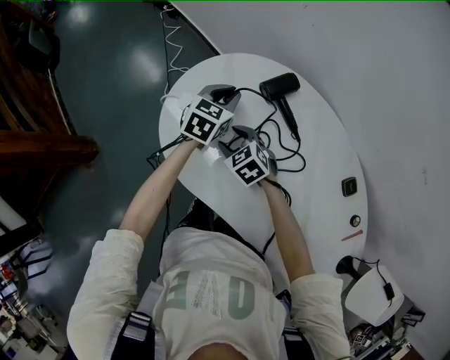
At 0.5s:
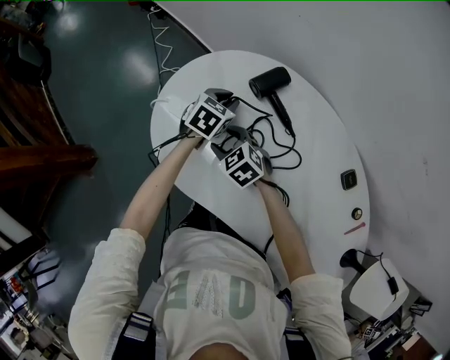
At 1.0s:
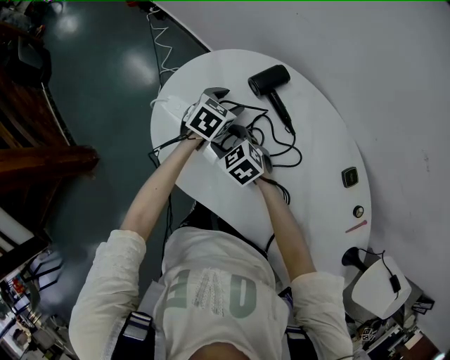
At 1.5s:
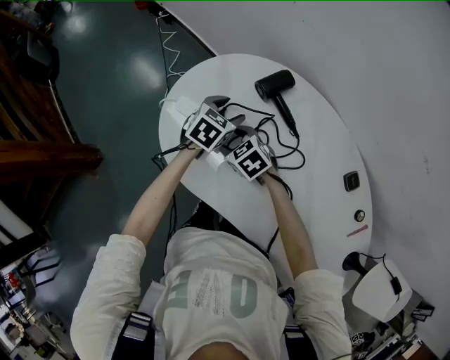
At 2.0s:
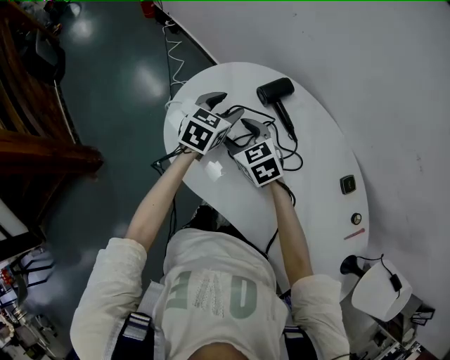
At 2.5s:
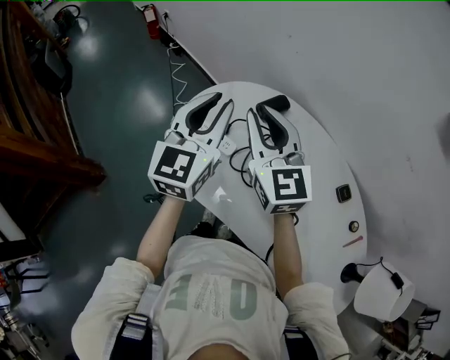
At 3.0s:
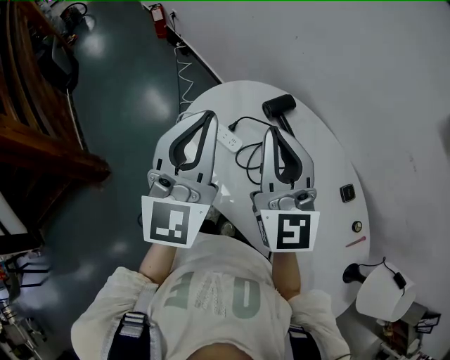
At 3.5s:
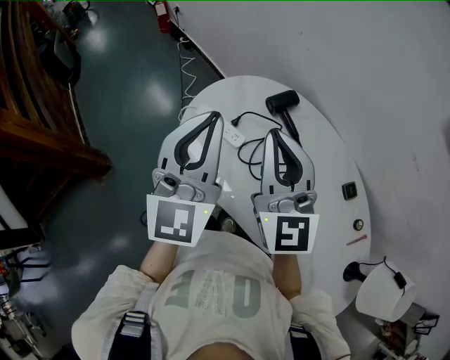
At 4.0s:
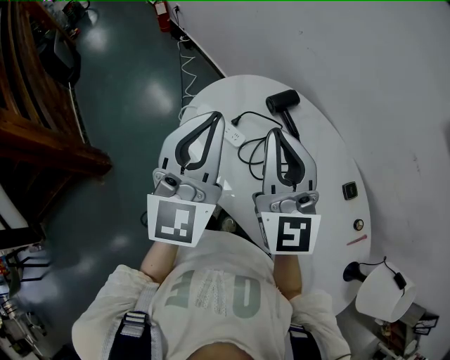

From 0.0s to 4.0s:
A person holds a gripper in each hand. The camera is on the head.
From 0.0s to 2.0s: The right gripper heads upward, covering about 10 cm. The left gripper ends up roughly 5 cm from where it was, and opens up.
From 2.0s to 4.0s: The right gripper heads upward, covering about 30 cm, tilts its fingers approximately 50 degrees upward, and closes up. The left gripper shifts about 30 cm upward and backward, angles its fingers upward, by some 40 degrees, and closes its fingers.

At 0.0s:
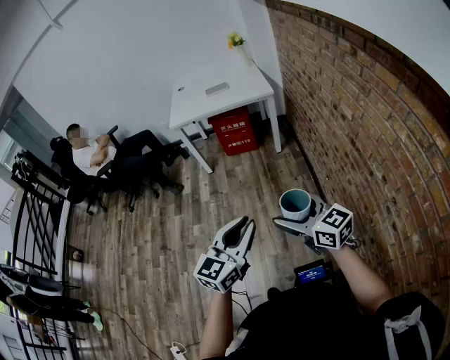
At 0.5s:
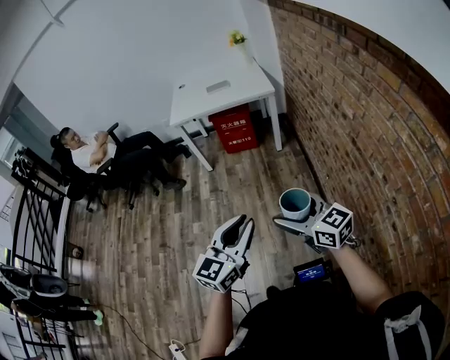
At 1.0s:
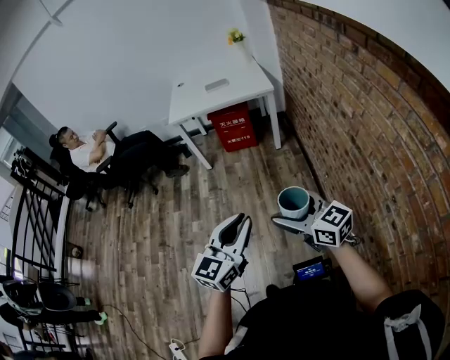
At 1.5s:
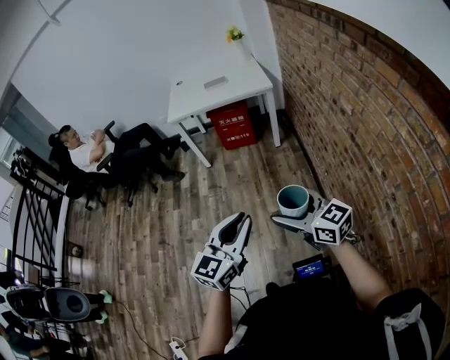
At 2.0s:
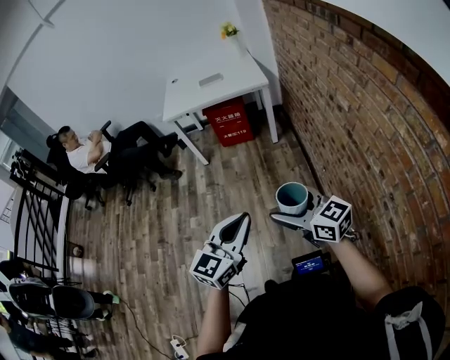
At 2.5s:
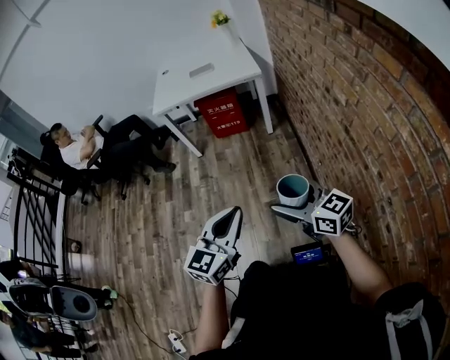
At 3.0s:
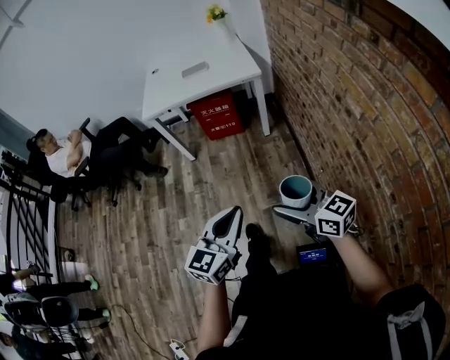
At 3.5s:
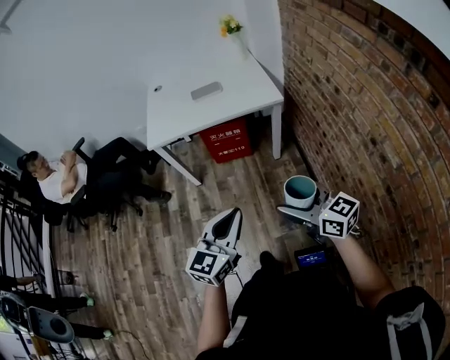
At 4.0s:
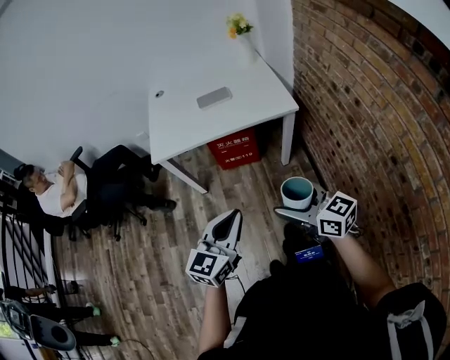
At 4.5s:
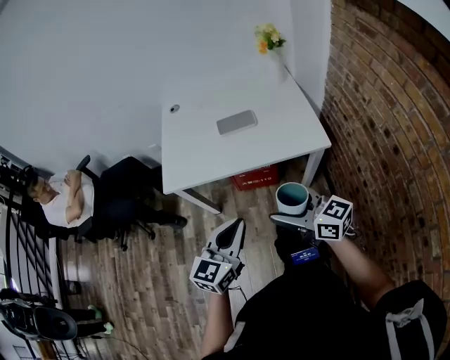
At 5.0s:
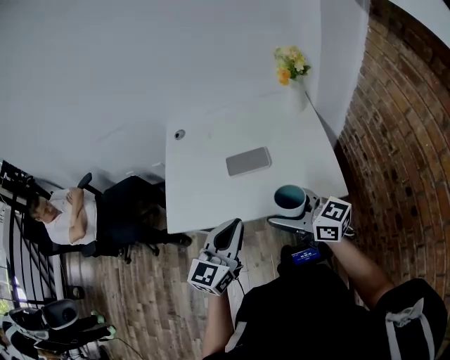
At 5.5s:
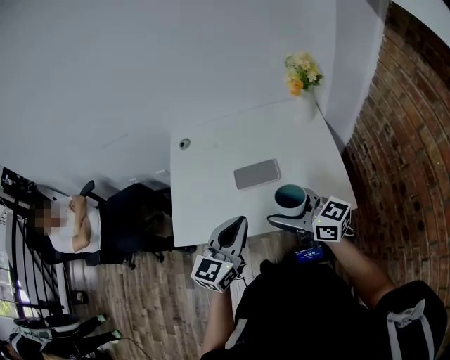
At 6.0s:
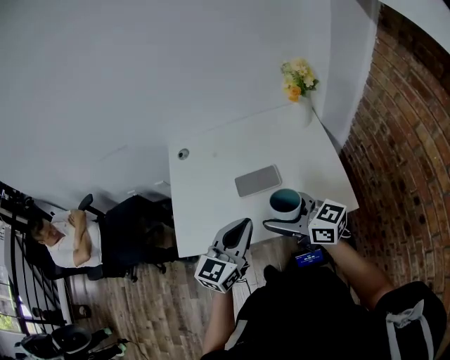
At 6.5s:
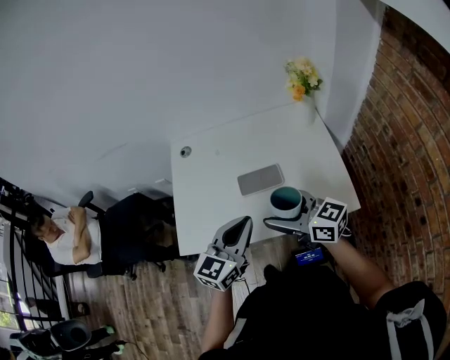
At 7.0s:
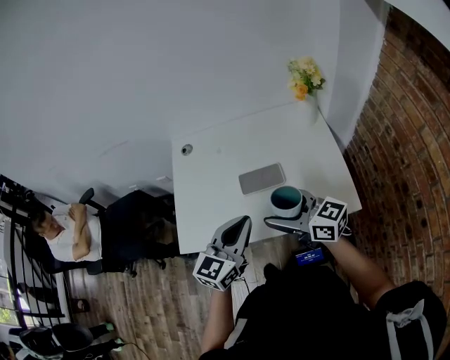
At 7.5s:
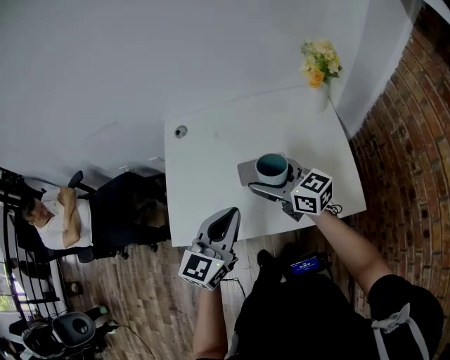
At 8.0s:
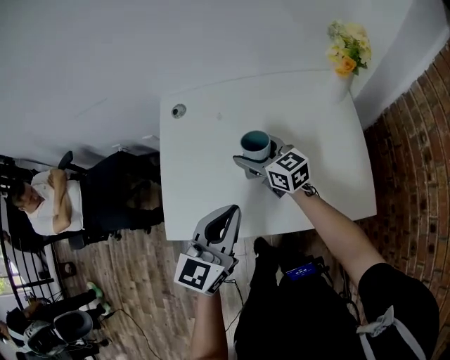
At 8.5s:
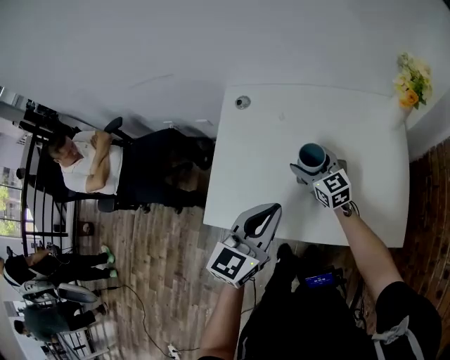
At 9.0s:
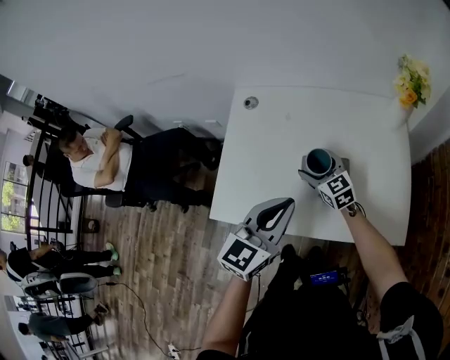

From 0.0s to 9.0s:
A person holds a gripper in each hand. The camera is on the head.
From 0.0s to 2.0s: There are only small adjustments of the grippers.
From 2.0s to 4.5s: The pair of grippers is taken forward, some 70 cm.
From 4.5s to 7.0s: The grippers both shift forward by about 30 cm.
From 7.0s to 9.0s: The right gripper shifts approximately 25 cm downward and forward, and changes its angle by about 30 degrees. The left gripper moves forward, some 5 cm.

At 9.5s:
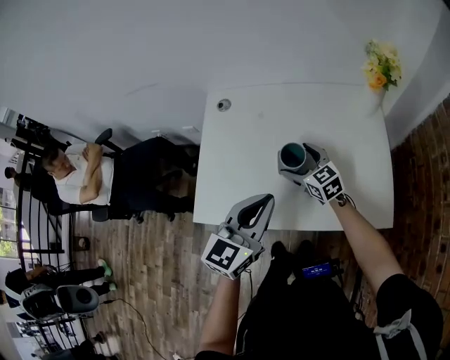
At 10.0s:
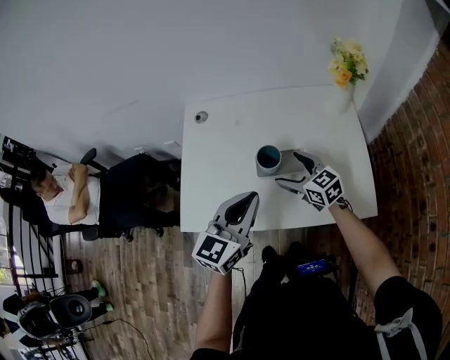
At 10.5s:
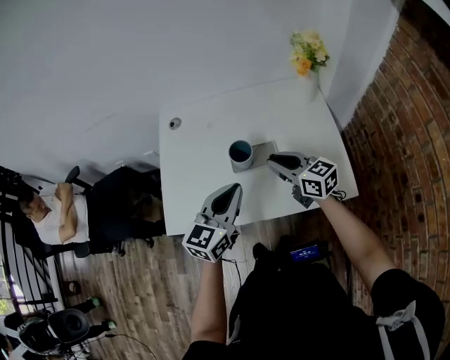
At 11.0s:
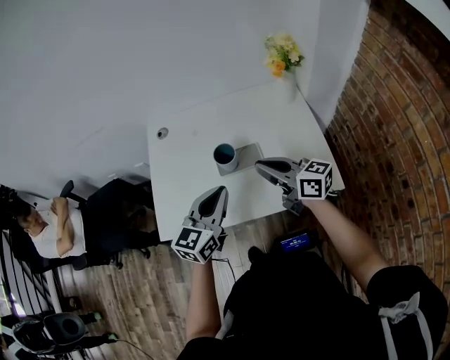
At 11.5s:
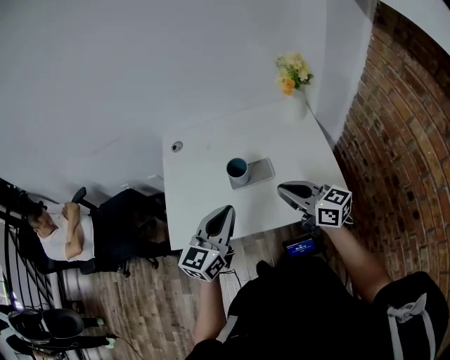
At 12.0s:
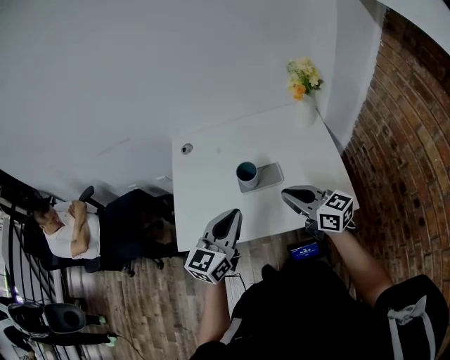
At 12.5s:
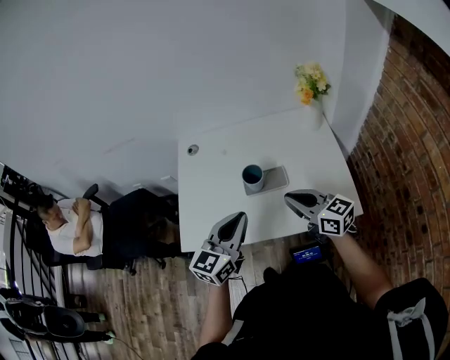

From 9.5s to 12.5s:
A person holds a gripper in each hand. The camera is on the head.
From 9.5s to 11.0s: The right gripper travels upward, backward and to the right by roughly 20 cm, swivels about 30 degrees, and closes its fingers.
From 11.0s to 12.5s: The grippers move only a little.

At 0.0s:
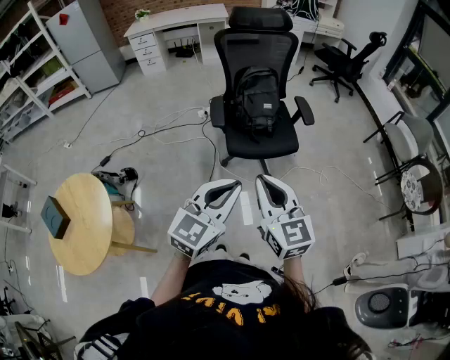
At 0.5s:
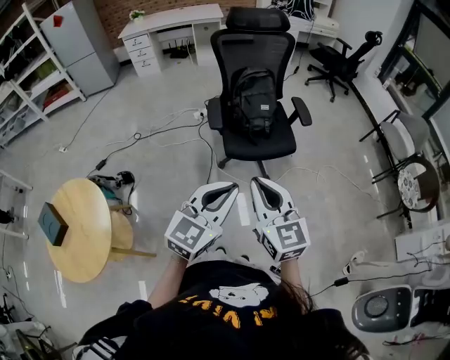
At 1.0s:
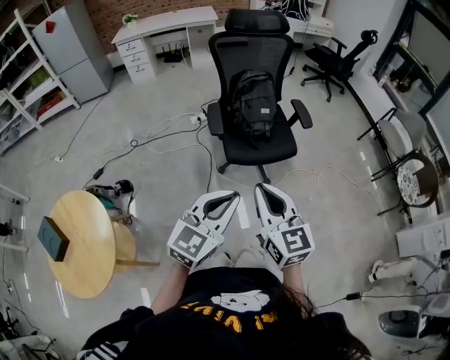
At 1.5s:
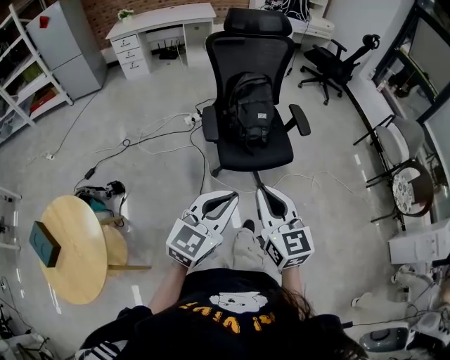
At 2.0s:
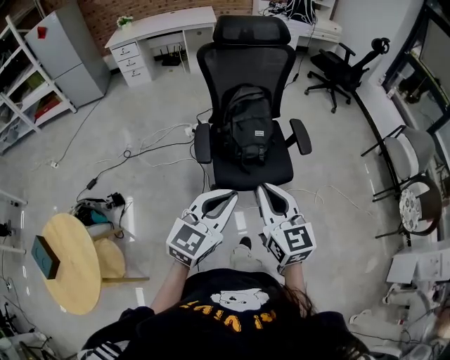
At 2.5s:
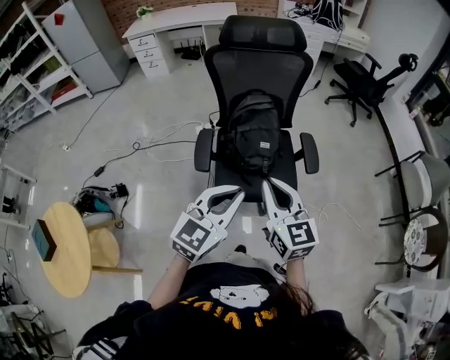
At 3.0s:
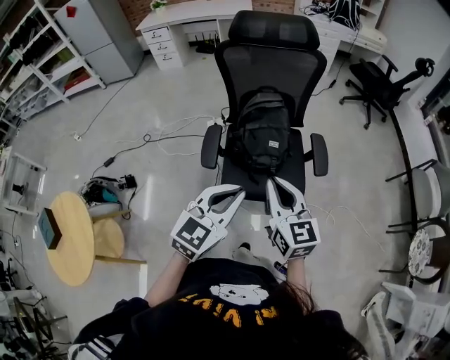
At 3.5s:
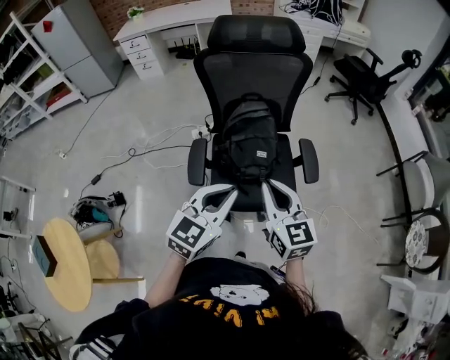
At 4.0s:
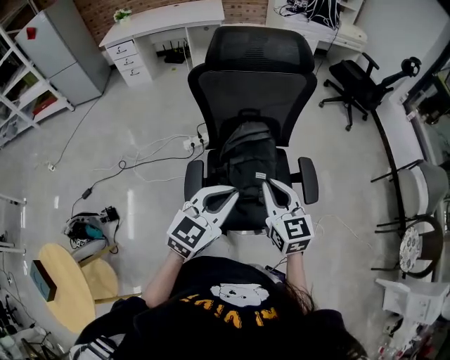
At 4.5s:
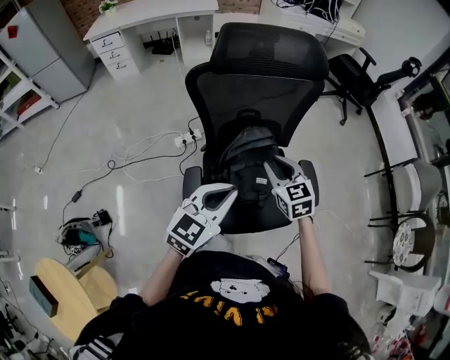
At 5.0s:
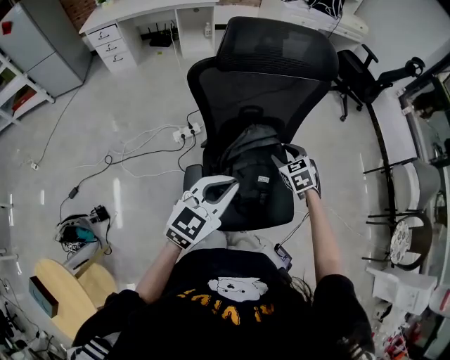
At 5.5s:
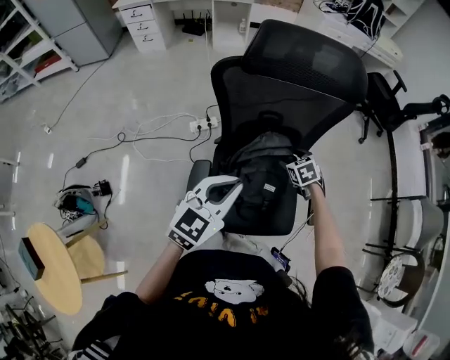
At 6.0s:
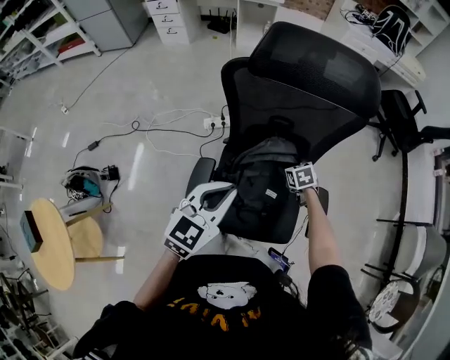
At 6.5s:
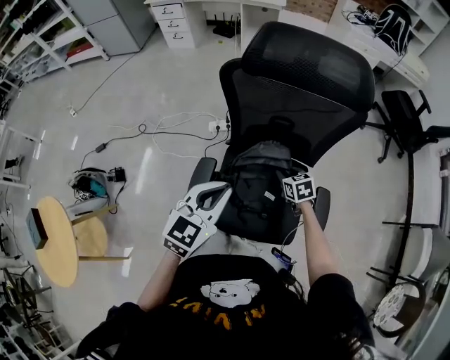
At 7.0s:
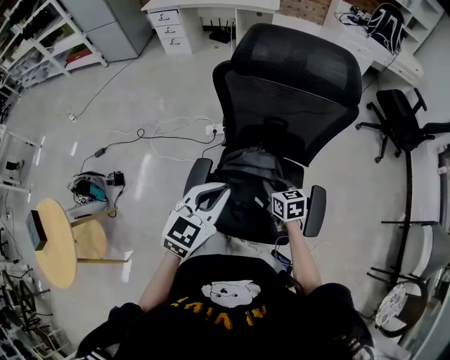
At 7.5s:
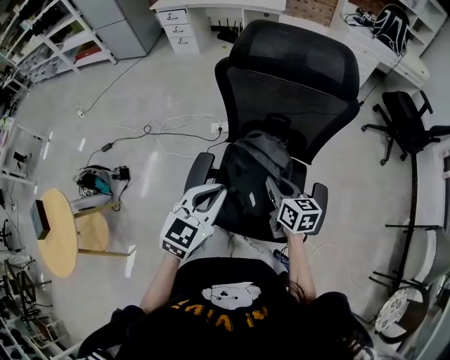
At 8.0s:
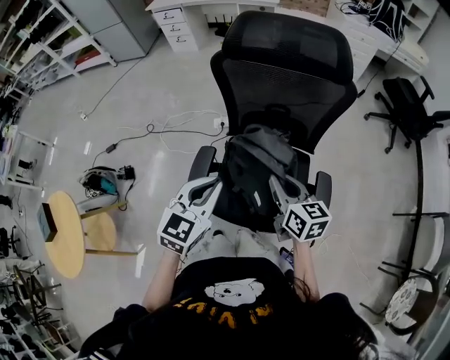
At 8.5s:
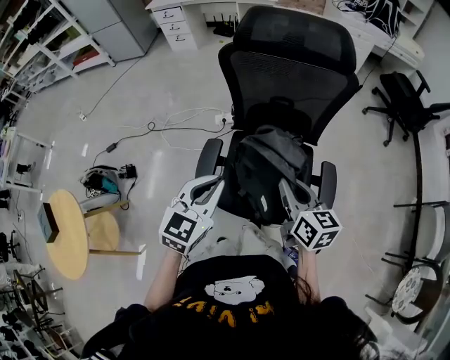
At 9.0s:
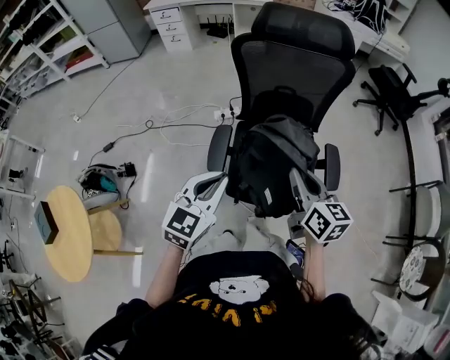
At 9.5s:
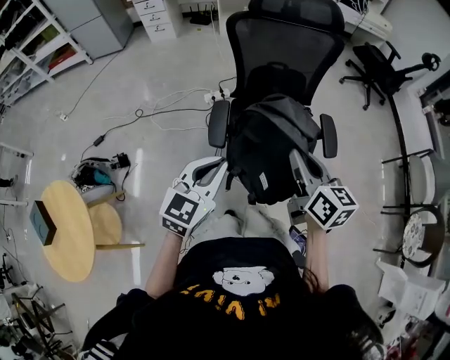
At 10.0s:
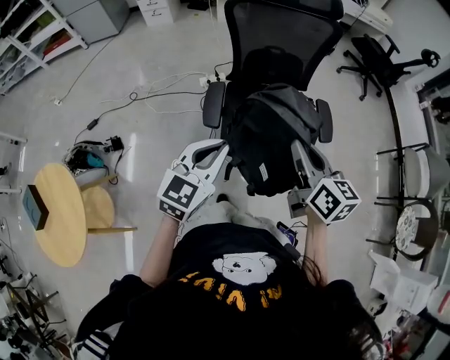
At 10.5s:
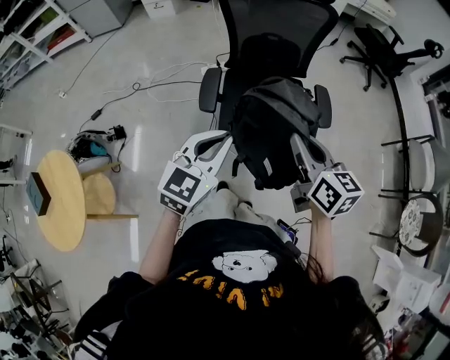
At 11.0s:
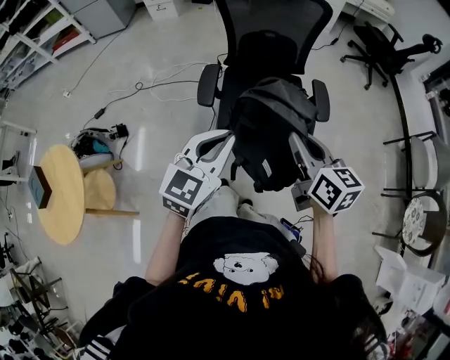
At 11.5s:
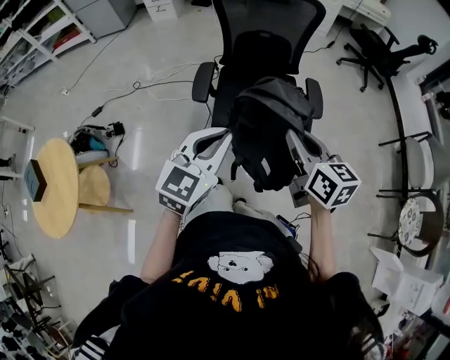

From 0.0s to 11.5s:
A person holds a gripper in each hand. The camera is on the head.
From 0.0s to 2.0s: The grippers both shift forward by about 20 cm.
From 2.0s to 4.0s: The grippers both shift forward by about 30 cm.
From 4.0s to 6.0s: The left gripper shifts some 10 cm forward and to the left, while the right gripper moves downward and forward, approximately 40 cm, points its fingers about 40 degrees further downward, and opens its fingers.
From 6.0s to 7.5s: The right gripper is displaced upward and backward by some 20 cm, points its fingers about 40 degrees further upward, and closes; the left gripper travels backward by approximately 5 cm.
From 7.5s to 9.5s: The left gripper goes roughly 25 cm backward and to the left. The right gripper goes approximately 30 cm backward and upward, and turns by roughly 20 degrees.
From 9.5s to 11.5s: The right gripper moves backward and to the right, about 15 cm. Meanwhile the left gripper heads to the right and backward, covering roughly 15 cm.
